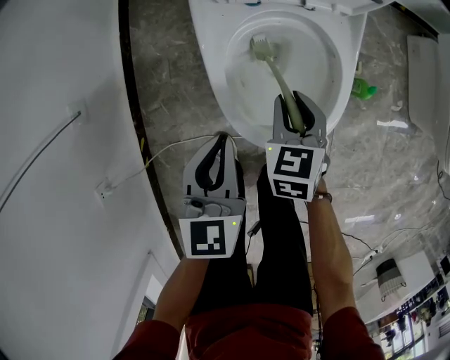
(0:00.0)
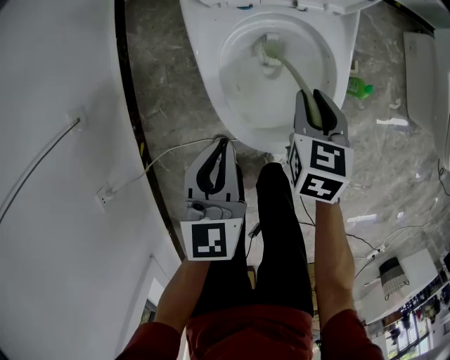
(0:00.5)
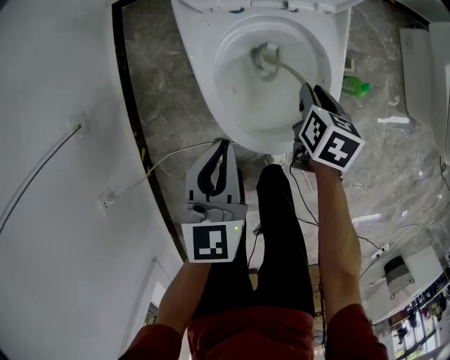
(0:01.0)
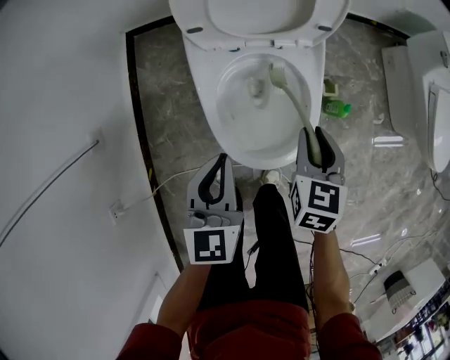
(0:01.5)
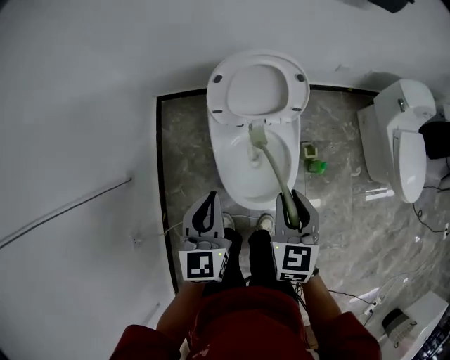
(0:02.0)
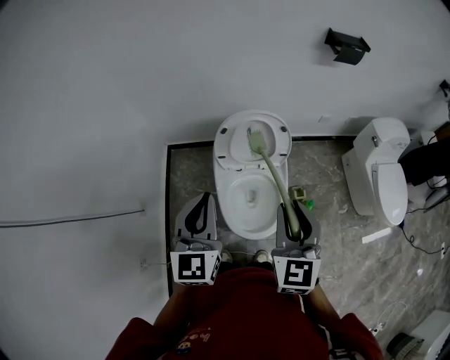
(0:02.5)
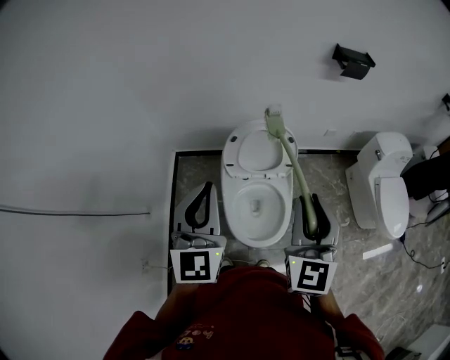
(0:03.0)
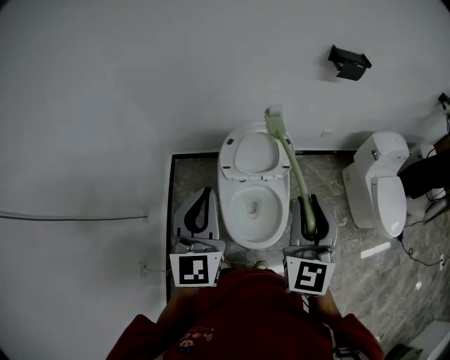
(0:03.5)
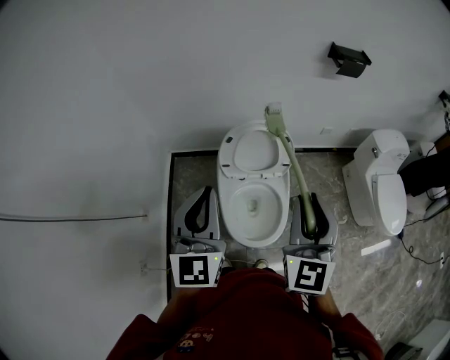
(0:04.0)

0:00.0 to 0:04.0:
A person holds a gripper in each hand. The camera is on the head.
0:00.0 to 0:02.0: The grippers both shift upward by about 30 cm.
0:02.0 to 0:04.0: The two grippers go roughly 25 cm upward. The right gripper changes its angle by some 30 degrees. The left gripper changes its angle by roughly 20 degrees.

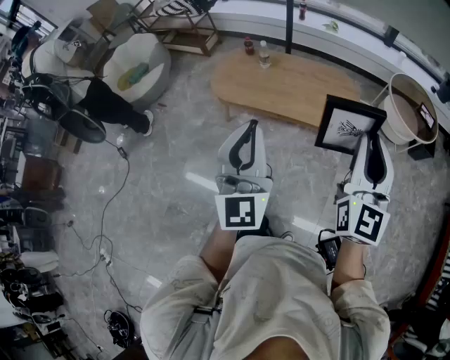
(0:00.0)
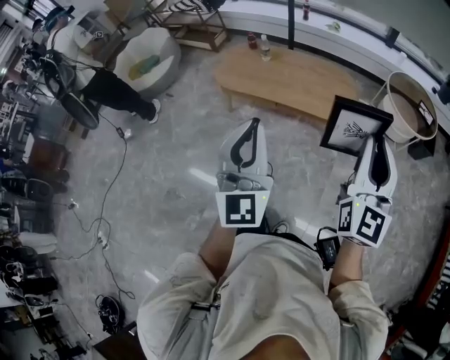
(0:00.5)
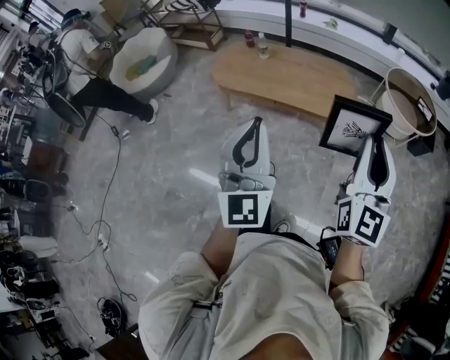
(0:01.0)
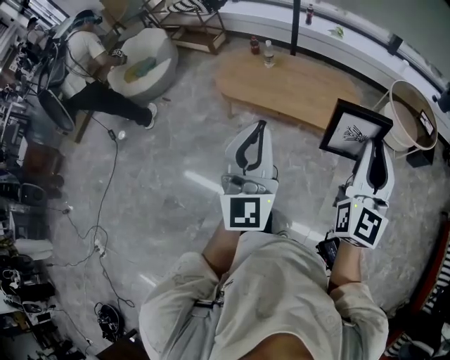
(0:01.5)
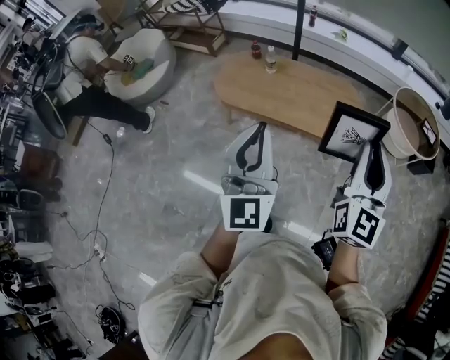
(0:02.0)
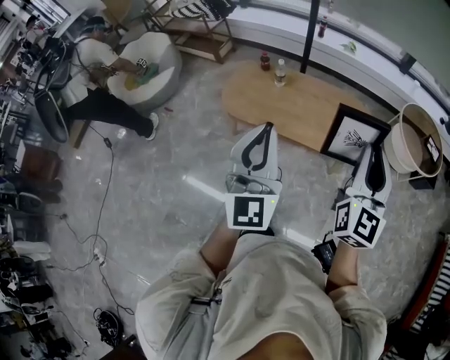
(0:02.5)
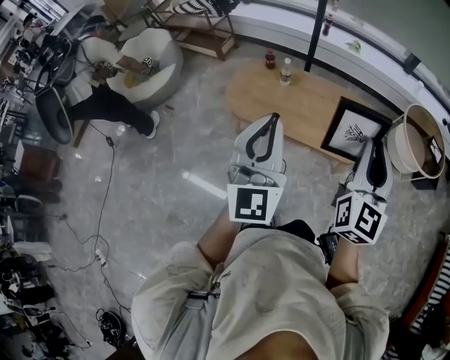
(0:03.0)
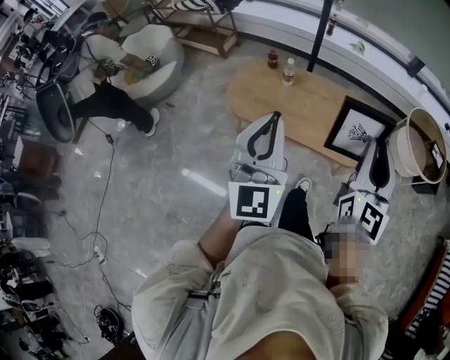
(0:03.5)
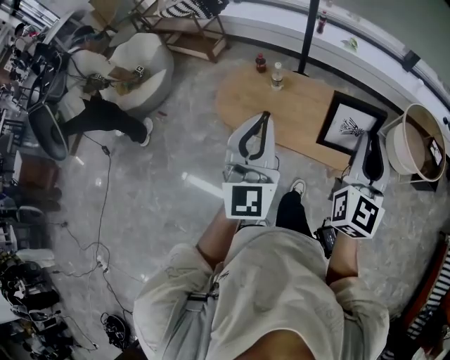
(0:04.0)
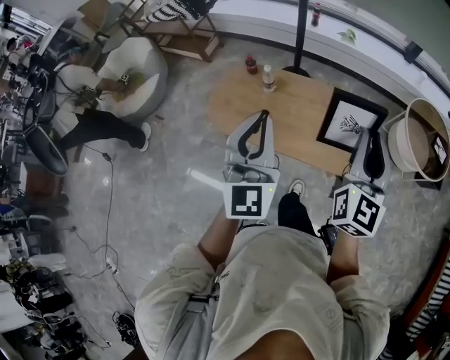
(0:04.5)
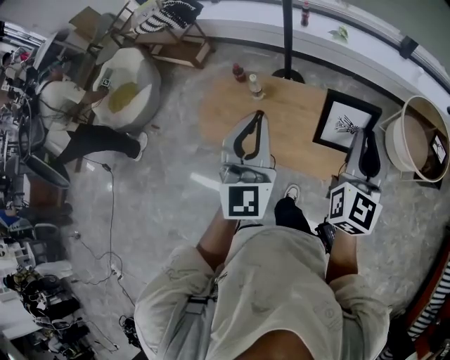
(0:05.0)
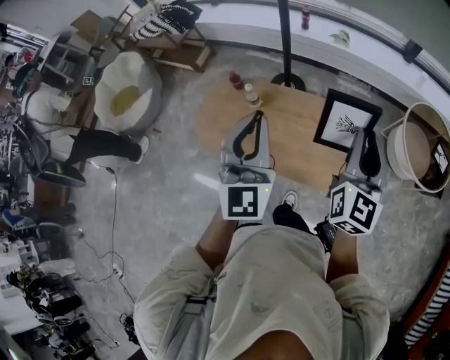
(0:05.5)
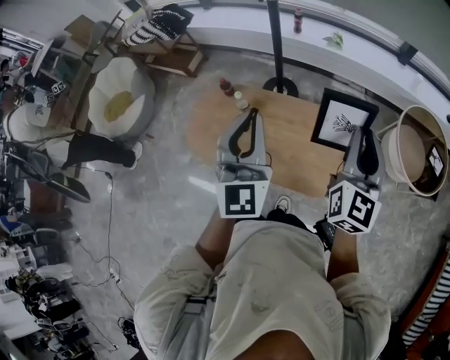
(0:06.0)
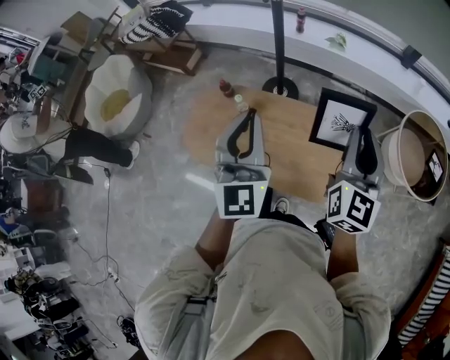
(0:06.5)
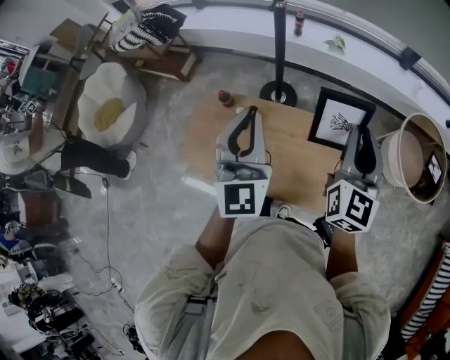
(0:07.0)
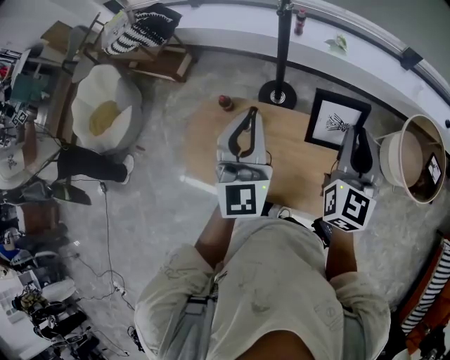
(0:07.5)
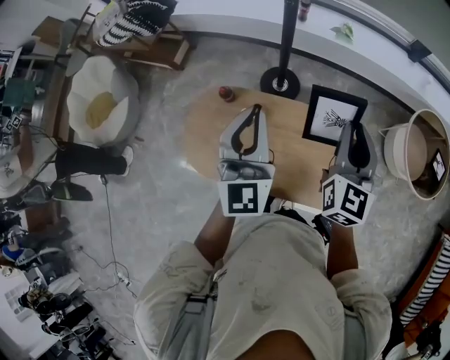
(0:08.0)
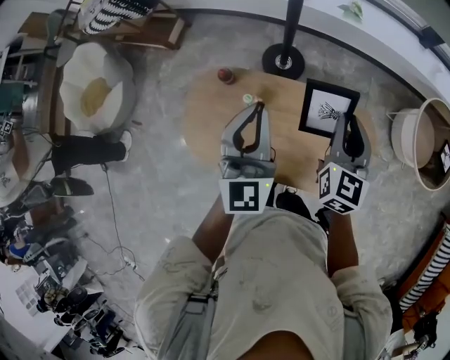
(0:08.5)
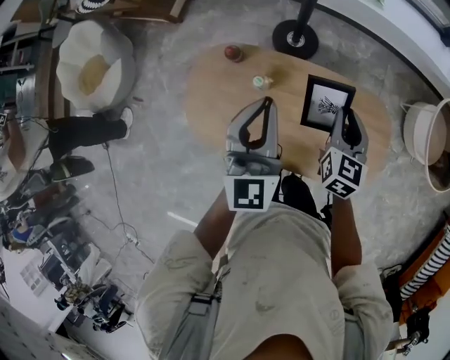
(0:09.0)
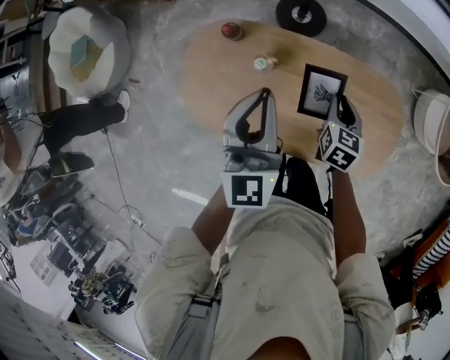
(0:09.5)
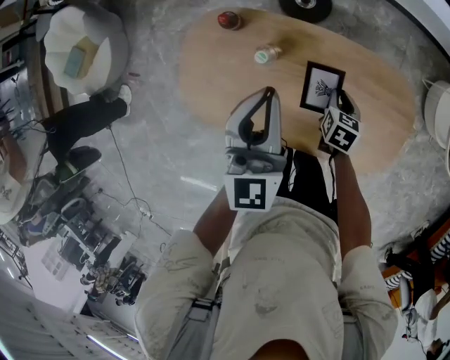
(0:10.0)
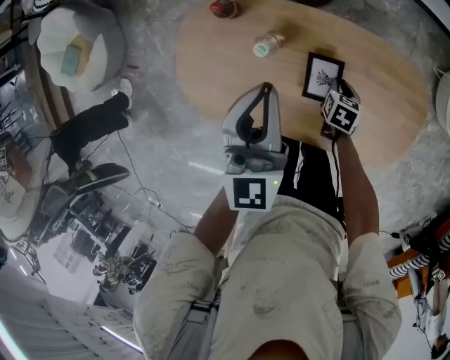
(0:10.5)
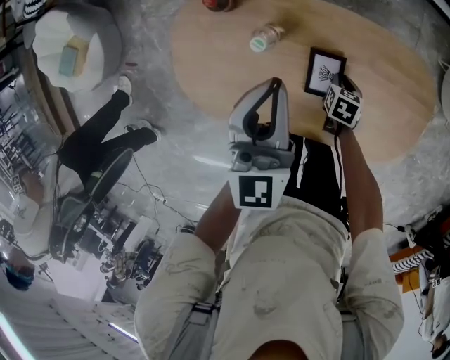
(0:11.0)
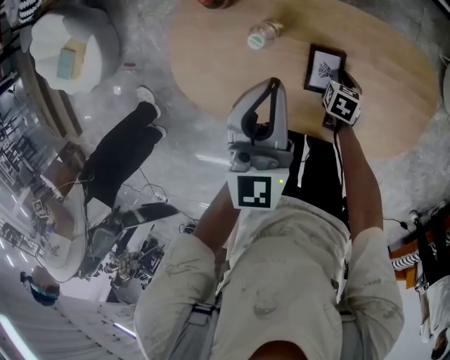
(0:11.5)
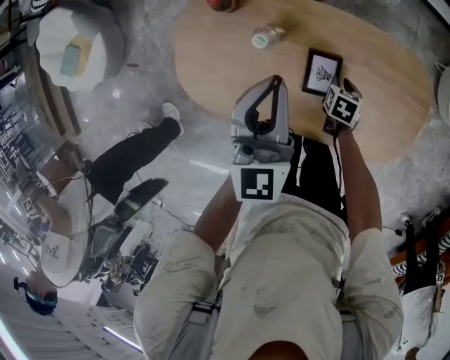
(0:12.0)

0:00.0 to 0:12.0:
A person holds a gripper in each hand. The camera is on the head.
0:00.0 to 0:02.0: The right gripper moves approximately 10 cm backward and comes back. Meanwhile the left gripper travels backward and back again, roughly 10 cm each way.
0:02.0 to 0:04.0: The grippers both shift forward by some 20 cm.
0:04.0 to 0:06.0: The two grippers go approximately 30 cm forward and to the right.
0:06.0 to 0:08.0: The left gripper travels forward and to the left by approximately 20 cm. The right gripper heads forward, to the left and downward, covering roughly 25 cm.
0:08.0 to 0:10.0: The left gripper goes about 20 cm downward; the right gripper is displaced downward by roughly 40 cm, and points its fingers some 50 degrees further downward.
0:10.0 to 0:12.0: The left gripper goes roughly 5 cm downward, while the right gripper shifts some 10 cm downward.

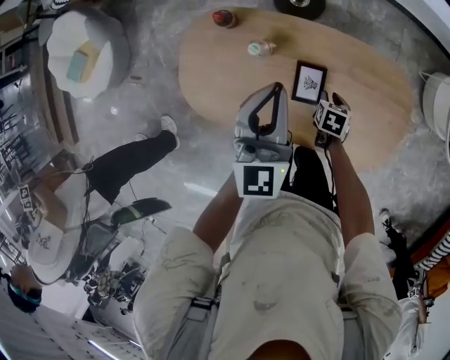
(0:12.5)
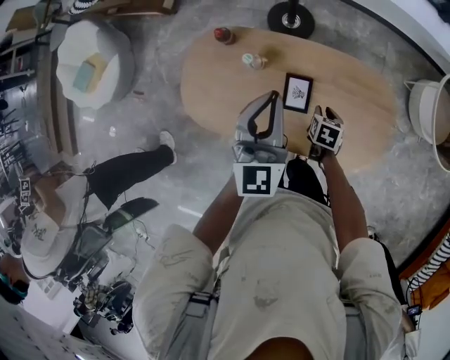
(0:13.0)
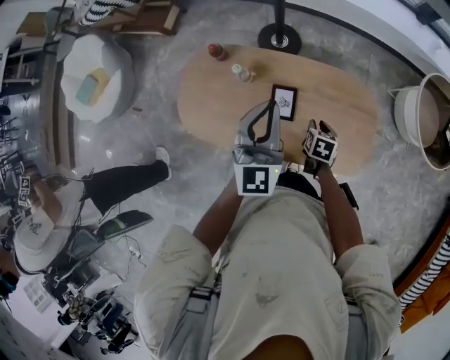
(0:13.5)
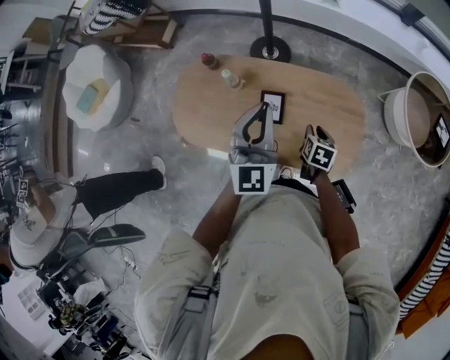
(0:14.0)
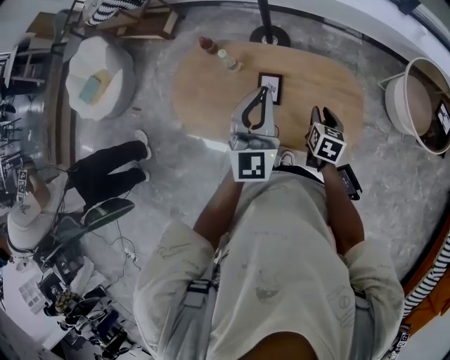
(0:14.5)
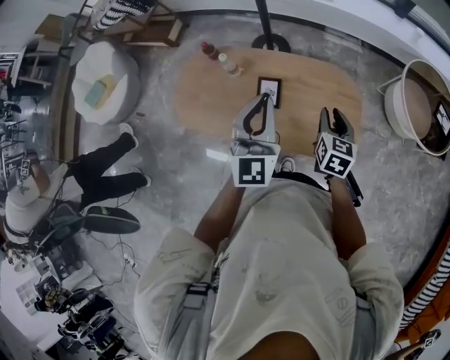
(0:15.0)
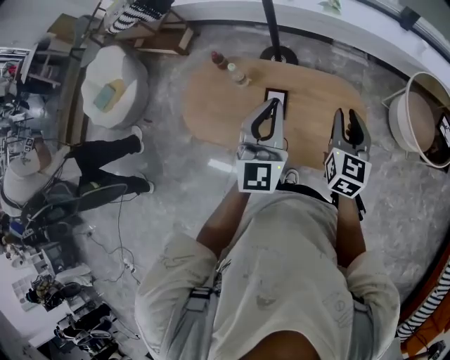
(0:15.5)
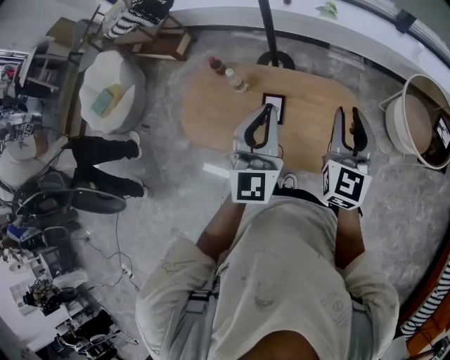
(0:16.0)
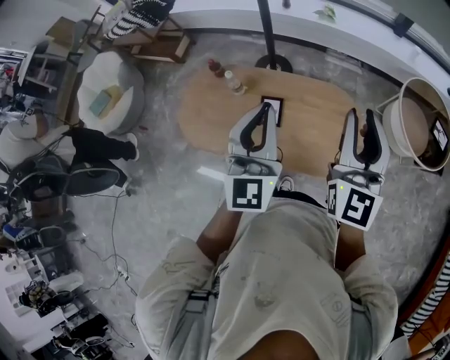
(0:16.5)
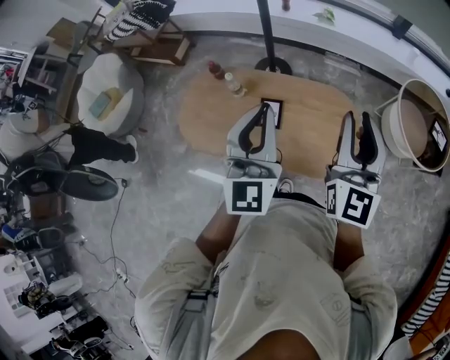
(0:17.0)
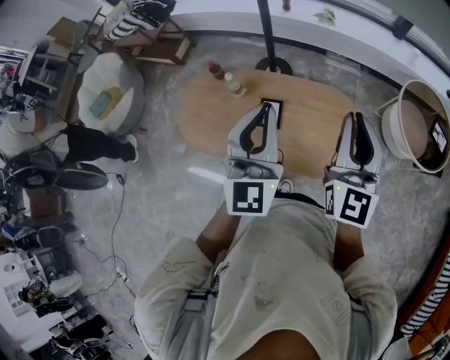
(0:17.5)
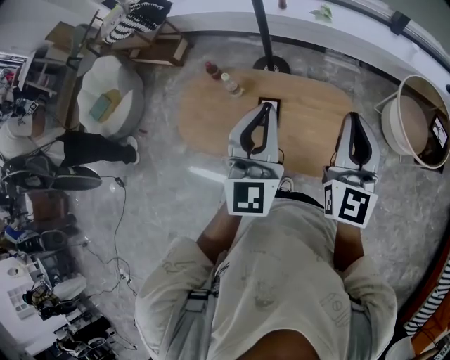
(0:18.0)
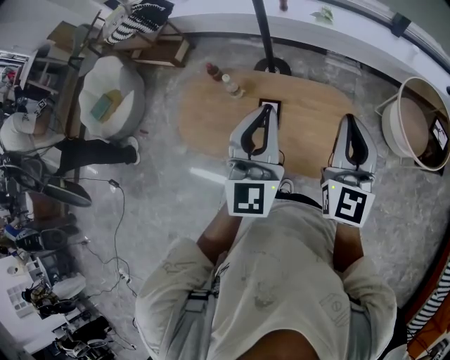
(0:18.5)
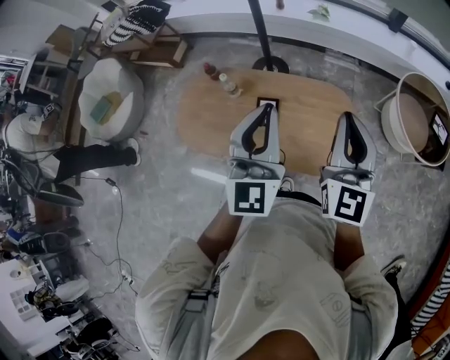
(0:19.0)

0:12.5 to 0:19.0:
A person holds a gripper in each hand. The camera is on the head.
0:12.5 to 0:14.5: The right gripper heads upward, to the right and backward, covering roughly 30 cm, and swivels approximately 30 degrees, while the left gripper is displaced backward, to the right and upward by about 25 cm.
0:14.5 to 0:17.0: The right gripper travels upward by some 35 cm, and tips its fingers upward by some 50 degrees. Meanwhile the left gripper shifts roughly 15 cm upward and backward.
0:17.0 to 0:19.0: The right gripper closes its fingers.

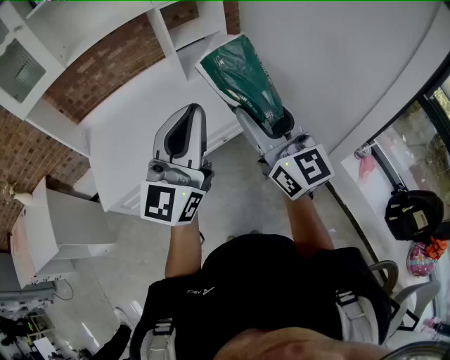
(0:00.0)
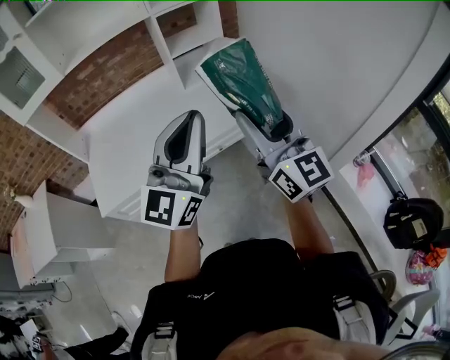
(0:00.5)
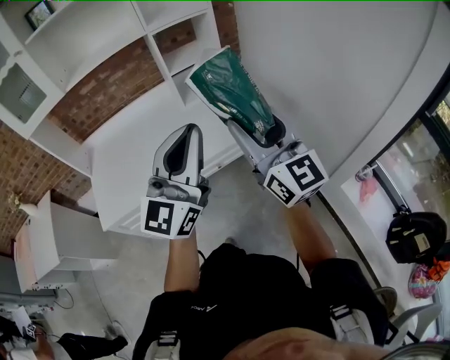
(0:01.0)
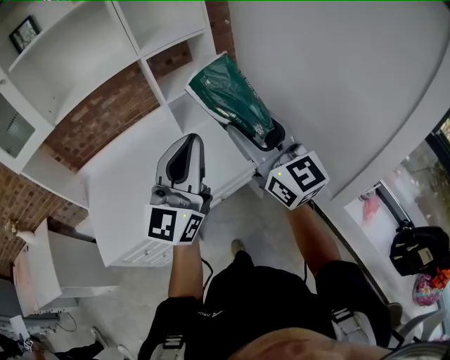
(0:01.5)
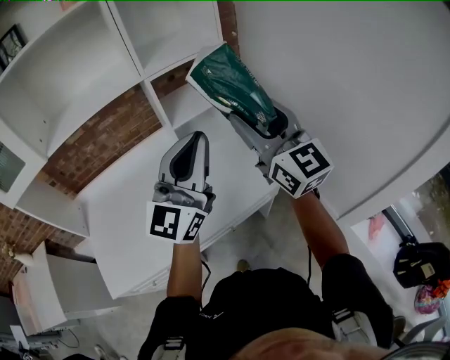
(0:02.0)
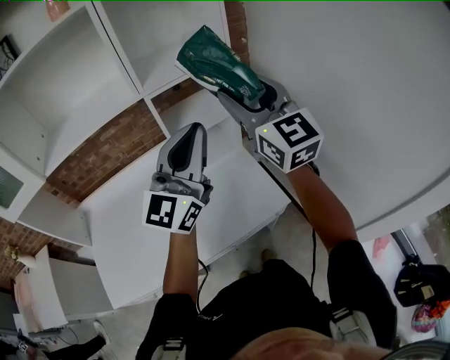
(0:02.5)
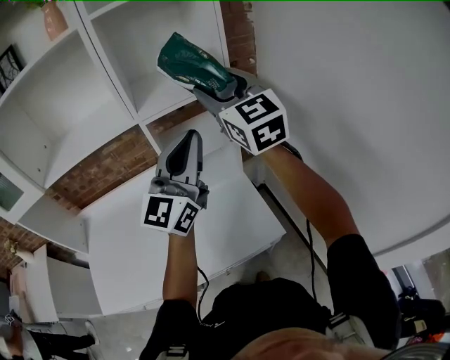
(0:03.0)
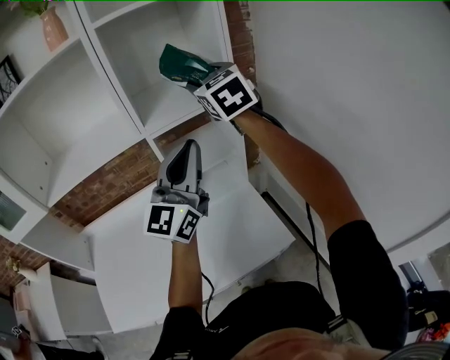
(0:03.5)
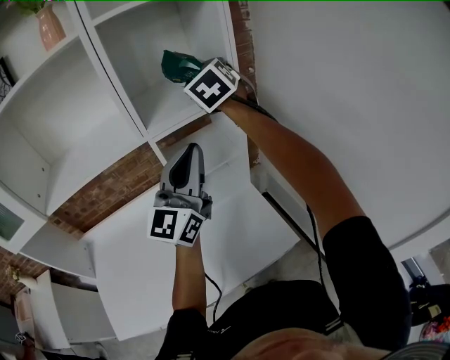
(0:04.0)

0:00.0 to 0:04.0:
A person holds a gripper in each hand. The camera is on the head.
0:00.0 to 0:02.0: The two grippers go about 30 cm forward.
0:02.0 to 0:04.0: The left gripper moves forward, some 20 cm; the right gripper travels forward by some 40 cm, and points its fingers approximately 30 degrees further downward.
